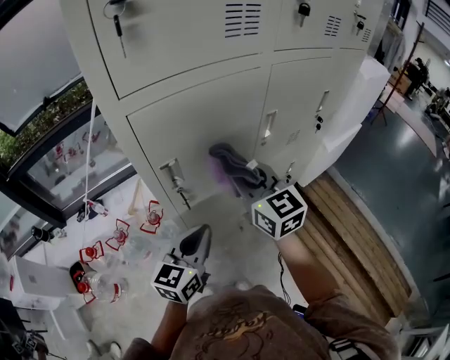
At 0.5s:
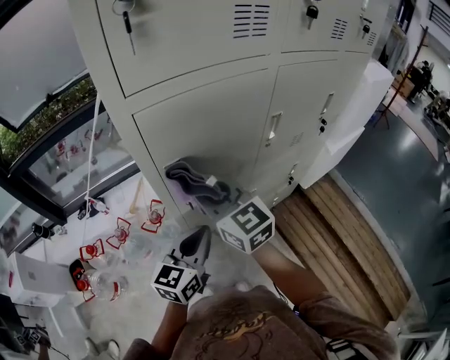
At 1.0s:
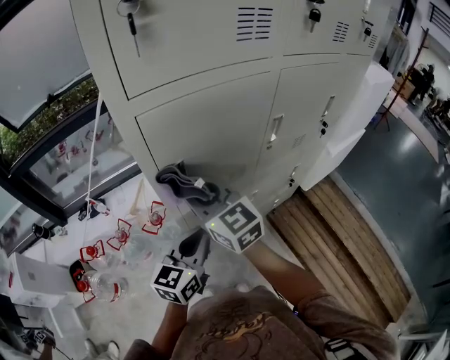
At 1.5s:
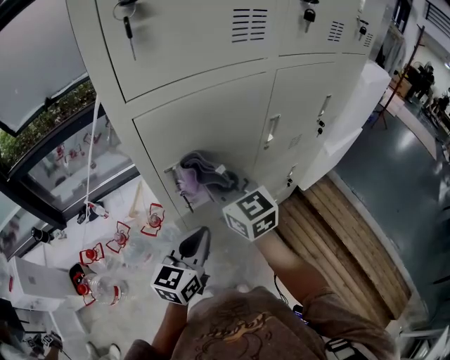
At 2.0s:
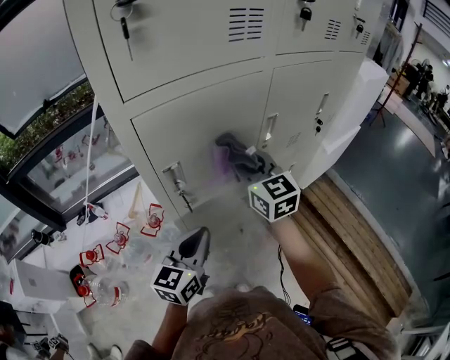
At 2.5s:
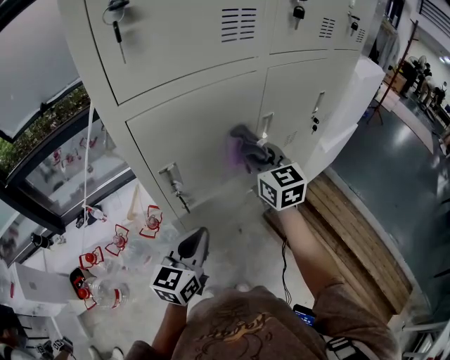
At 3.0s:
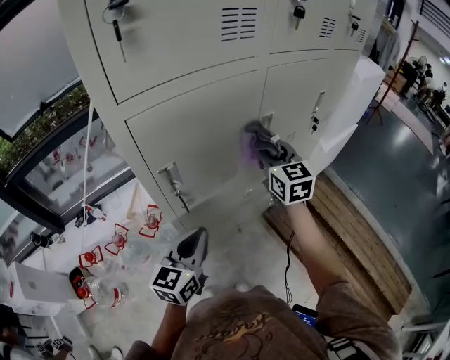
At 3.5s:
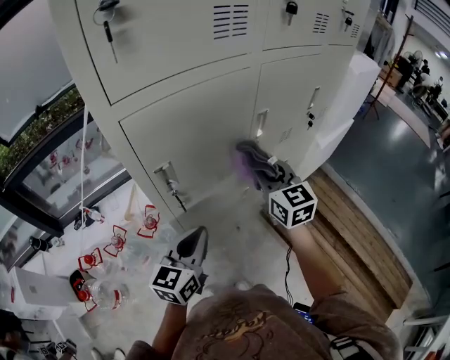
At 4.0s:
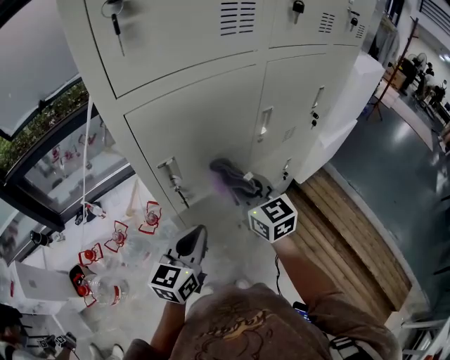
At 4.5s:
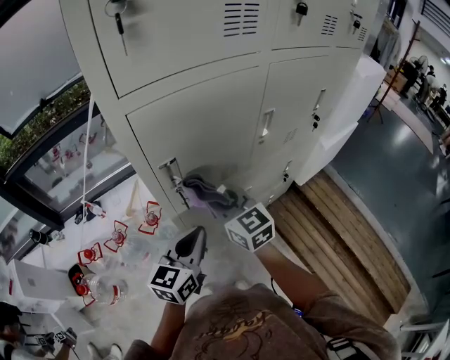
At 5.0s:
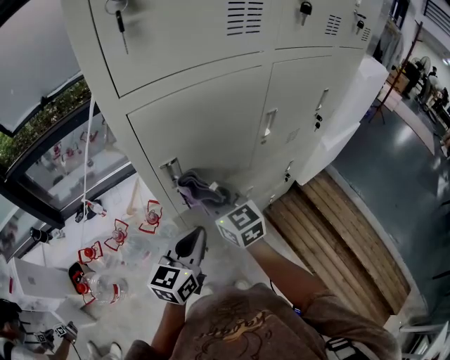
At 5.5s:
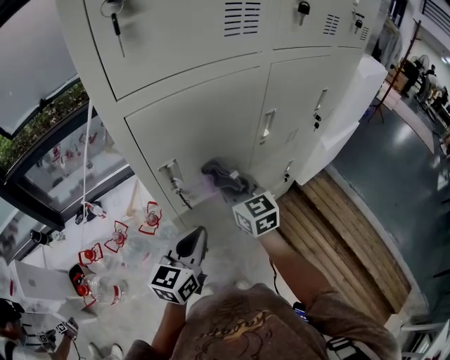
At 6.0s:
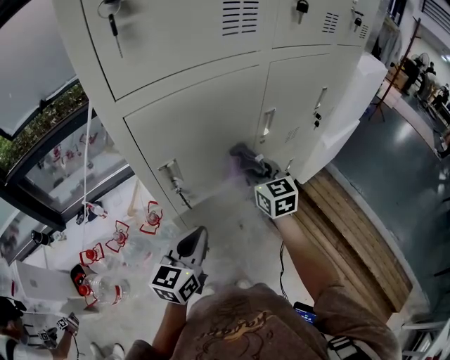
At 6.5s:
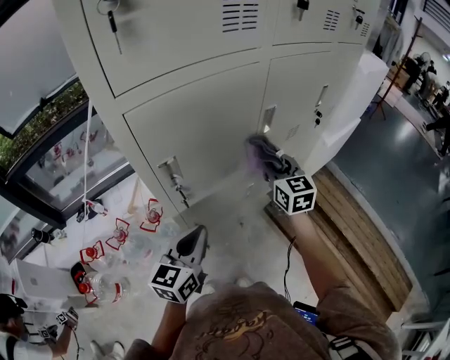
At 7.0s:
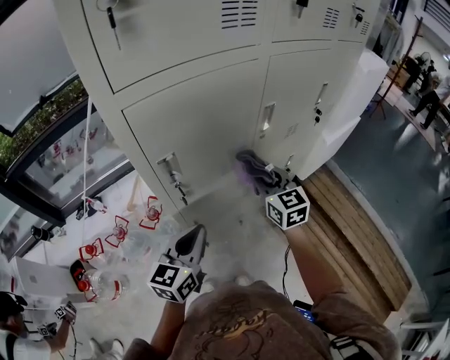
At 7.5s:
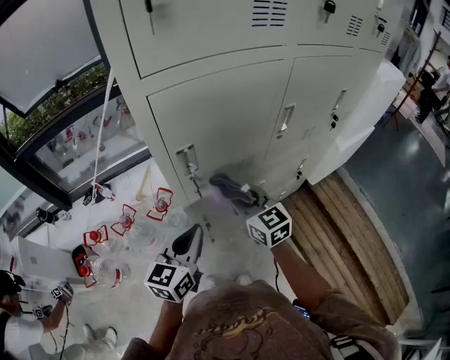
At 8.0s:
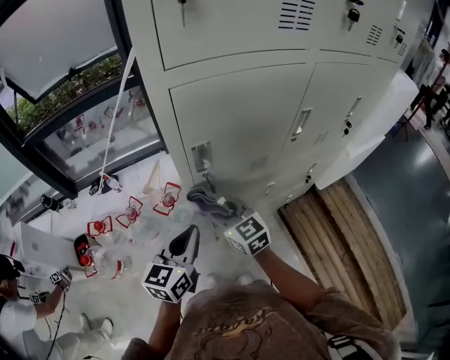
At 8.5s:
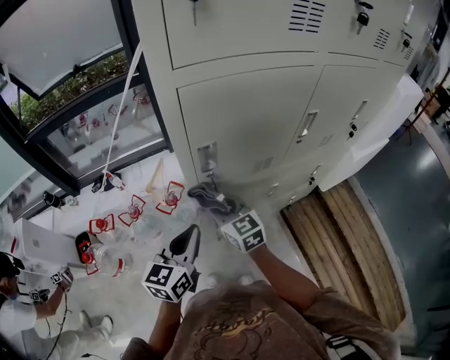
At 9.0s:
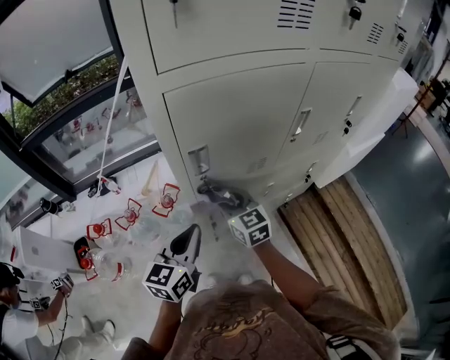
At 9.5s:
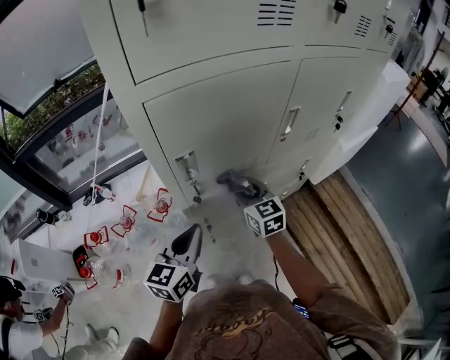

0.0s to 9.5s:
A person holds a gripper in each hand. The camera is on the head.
0.0s to 2.0s: The right gripper moves roughly 15 cm to the left and comes back.
2.0s to 4.0s: The right gripper goes roughly 10 cm downward and backward.
4.0s to 5.5s: The right gripper moves about 10 cm to the left and comes back.
5.5s to 7.5s: The right gripper heads backward, covering roughly 5 cm, and travels to the right and back again, about 15 cm each way.
7.5s to 9.5s: The right gripper is displaced forward by about 5 cm, and moves approximately 10 cm to the left and comes back.

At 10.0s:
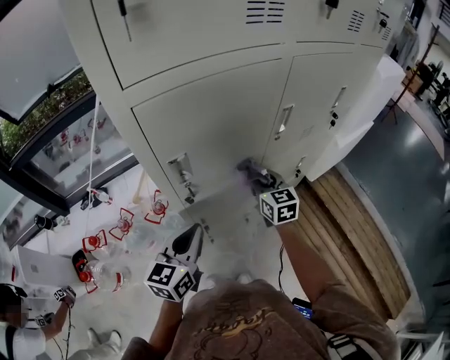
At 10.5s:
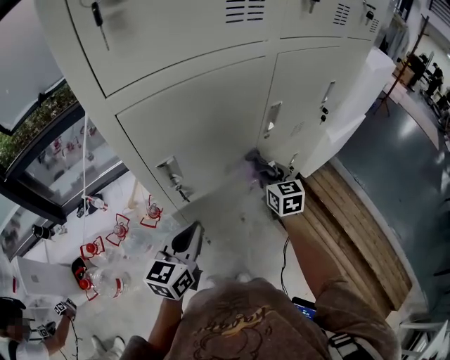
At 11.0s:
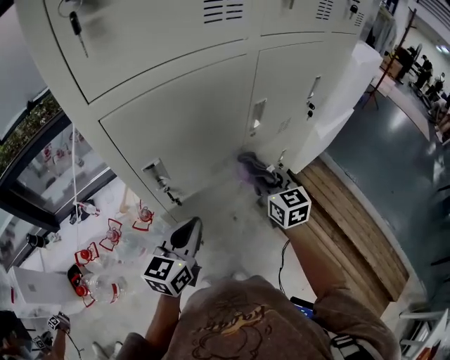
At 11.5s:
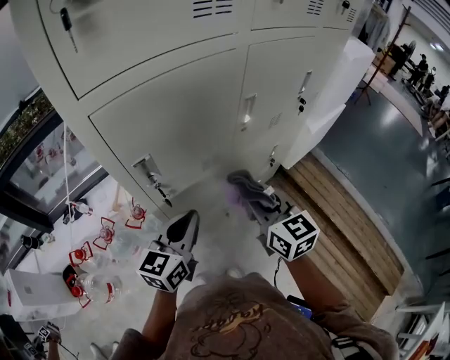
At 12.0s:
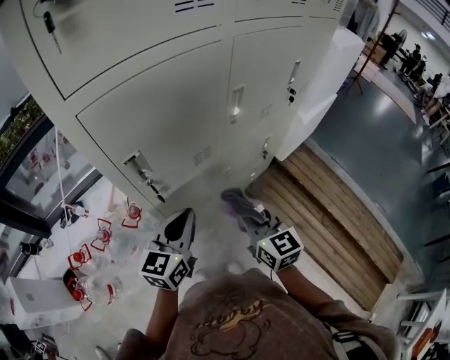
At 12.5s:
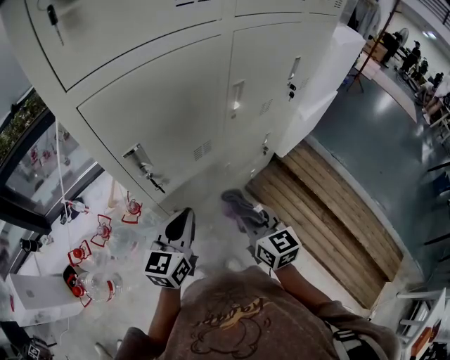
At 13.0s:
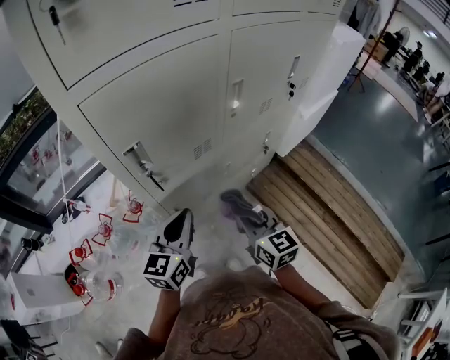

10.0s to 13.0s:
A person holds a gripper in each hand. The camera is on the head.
10.0s to 11.5s: The right gripper moves backward and upward, approximately 15 cm. The left gripper is displaced to the right by approximately 5 cm.
11.5s to 13.0s: The right gripper goes approximately 10 cm downward and backward.

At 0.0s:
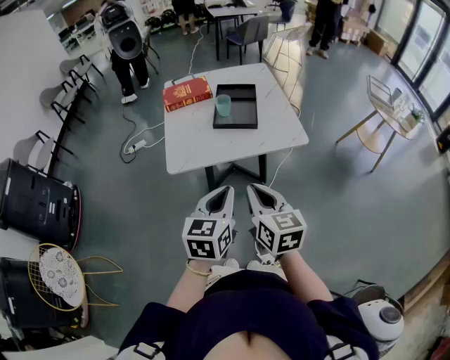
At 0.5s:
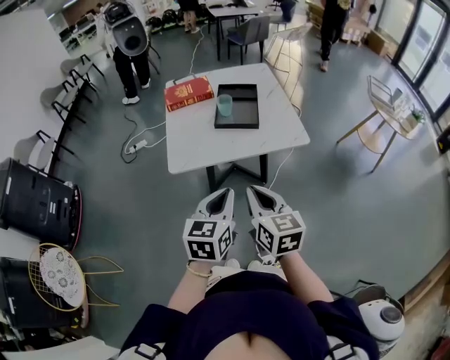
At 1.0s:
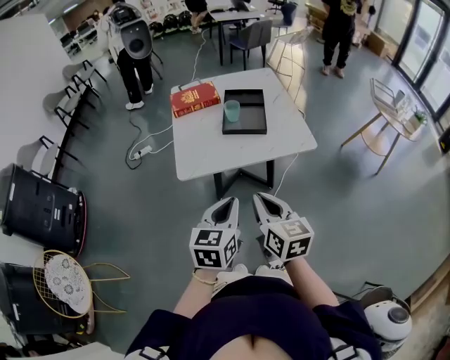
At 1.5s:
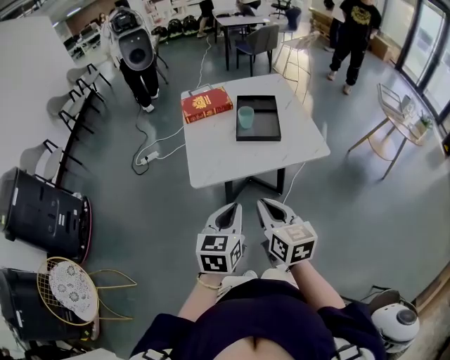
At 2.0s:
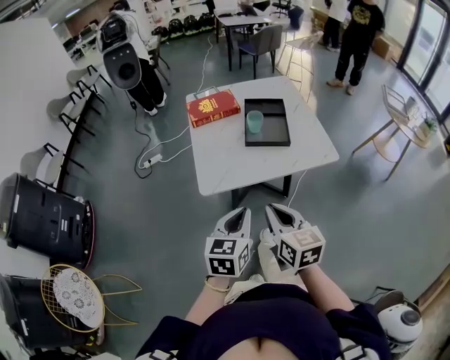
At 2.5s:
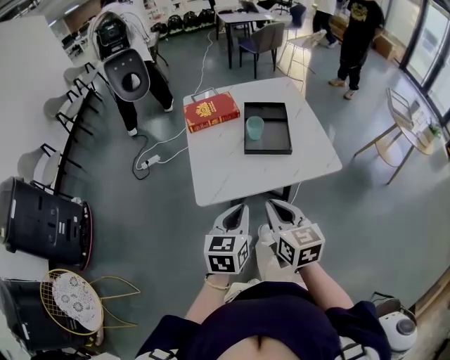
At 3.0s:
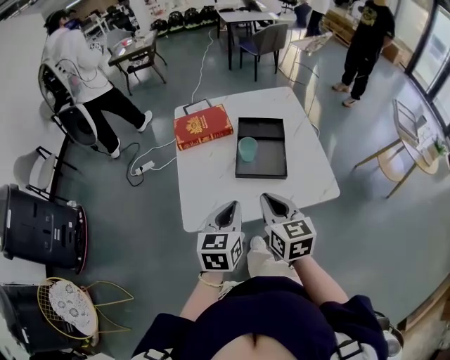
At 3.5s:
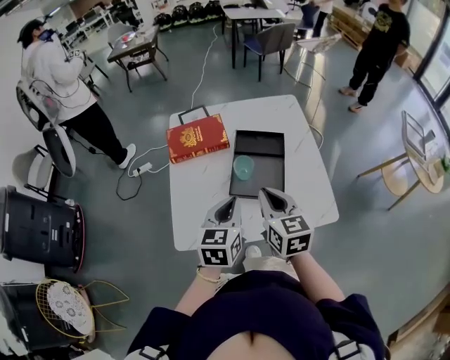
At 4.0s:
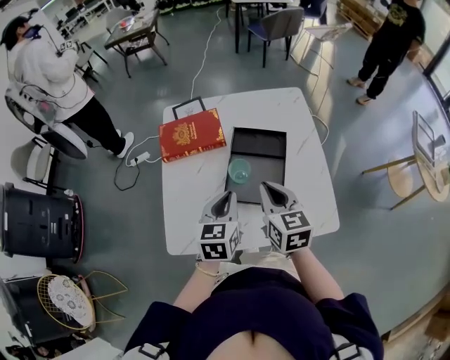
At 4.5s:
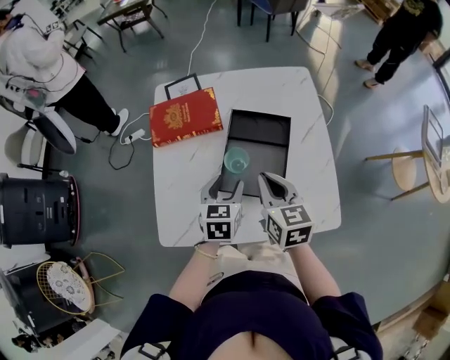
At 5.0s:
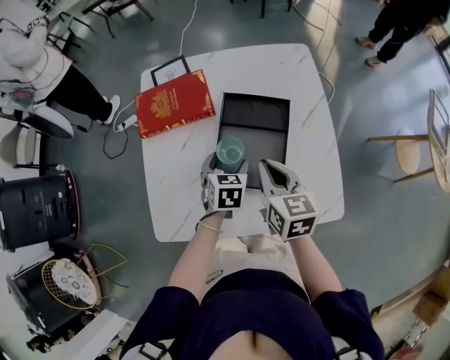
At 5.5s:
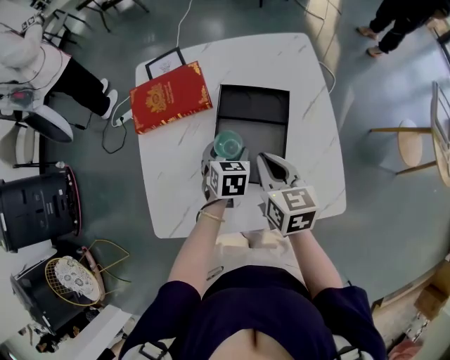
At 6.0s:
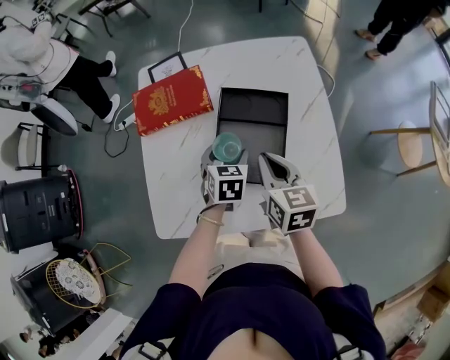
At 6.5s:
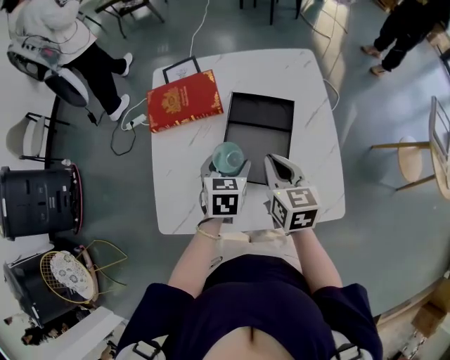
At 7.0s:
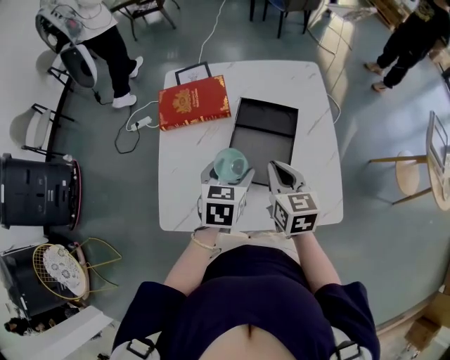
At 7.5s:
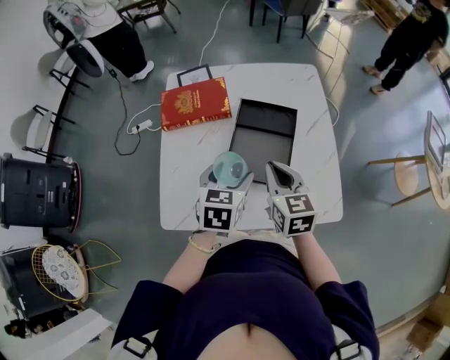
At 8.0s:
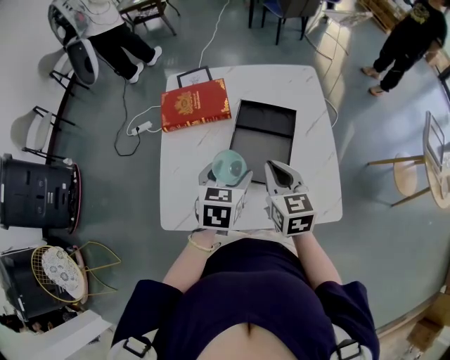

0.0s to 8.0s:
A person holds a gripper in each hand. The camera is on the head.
0.0s to 2.0s: Both grippers move to the left, roughly 10 cm.
2.0s to 4.0s: The two grippers go approximately 35 cm forward.
4.0s to 6.0s: The right gripper is displaced downward by about 5 cm, while the left gripper moves downward and forward, some 15 cm, changes its angle by roughly 20 degrees, and opens its fingers.
6.0s to 8.0s: The right gripper ends up about 5 cm from where it was. The left gripper moves upward and backward, roughly 15 cm.

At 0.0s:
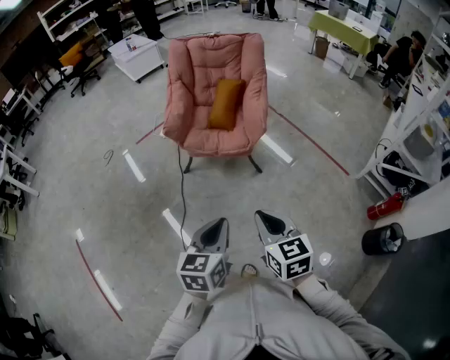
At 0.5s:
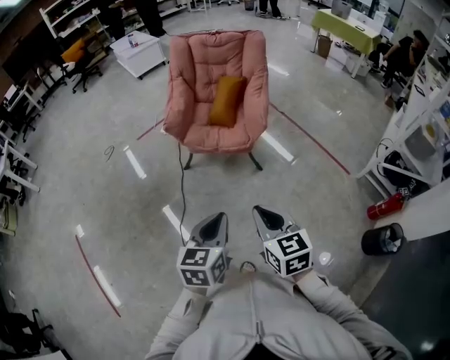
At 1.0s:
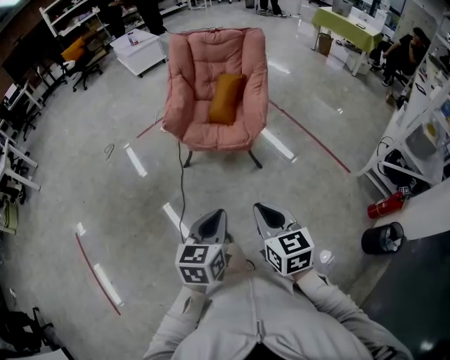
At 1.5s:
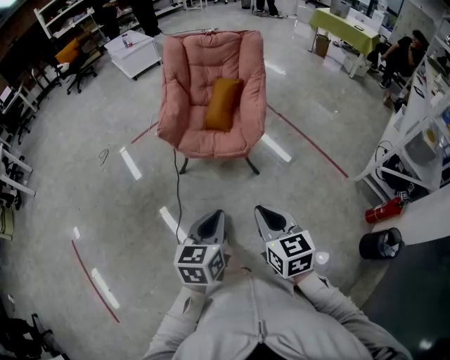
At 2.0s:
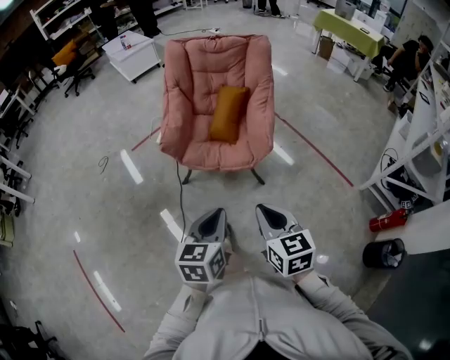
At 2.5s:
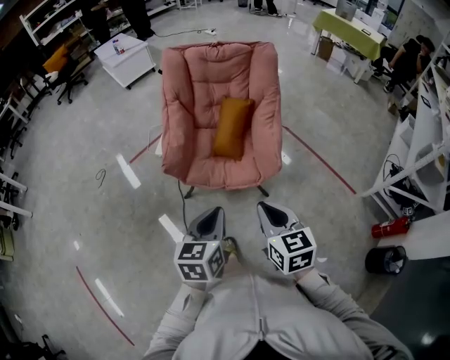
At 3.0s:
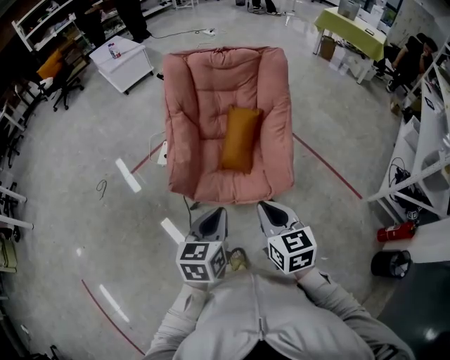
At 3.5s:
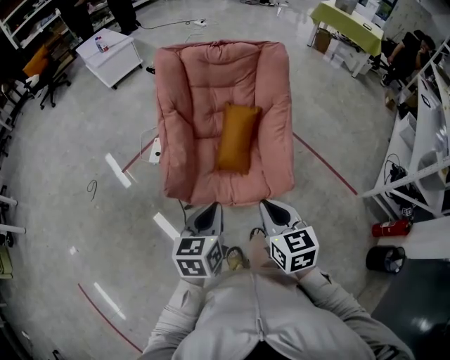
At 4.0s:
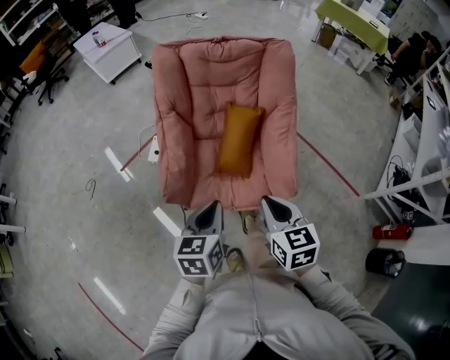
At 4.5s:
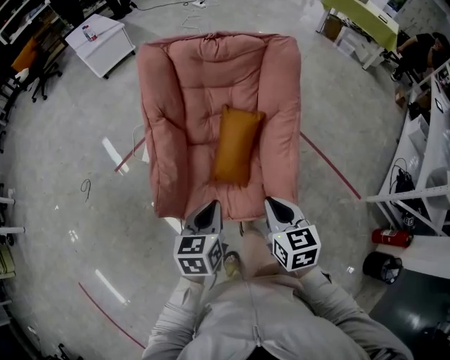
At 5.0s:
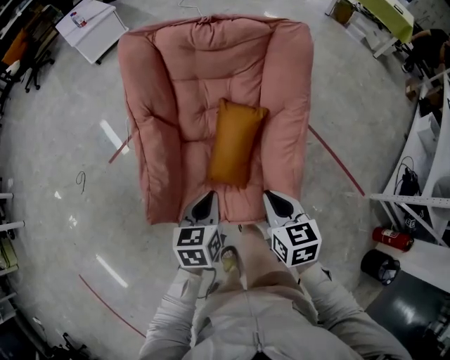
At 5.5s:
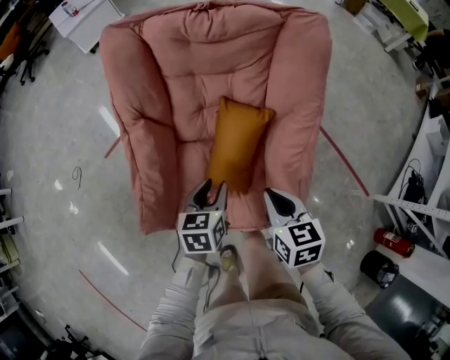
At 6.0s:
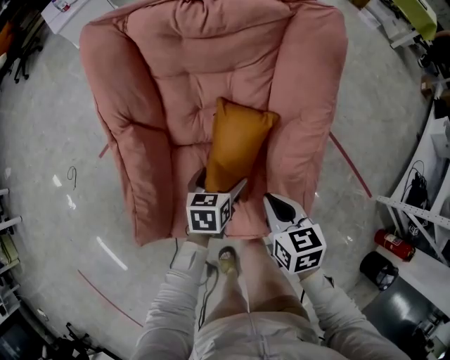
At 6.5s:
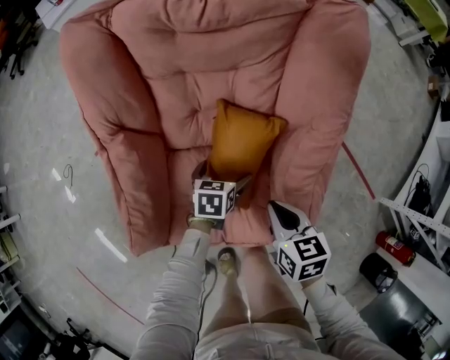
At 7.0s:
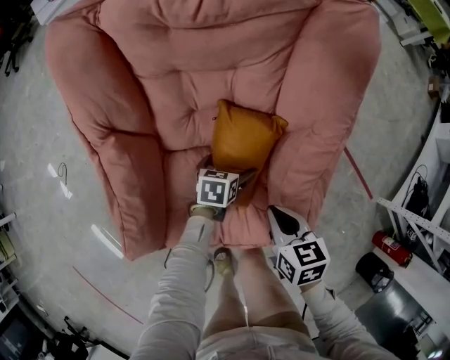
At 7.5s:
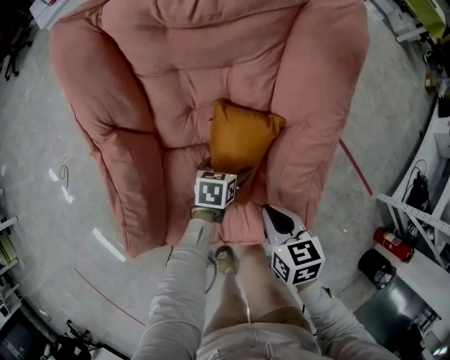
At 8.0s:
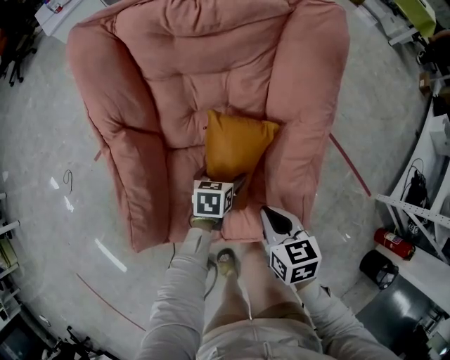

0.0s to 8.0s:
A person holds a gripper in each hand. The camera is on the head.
0.0s to 2.0s: Both grippers move forward, approximately 15 cm.
2.0s to 4.0s: The two grippers go roughly 35 cm forward.
4.0s to 6.0s: Both grippers move forward and downward, some 35 cm. The left gripper swivels roughly 20 degrees, and opens.
6.0s to 8.0s: The left gripper travels downward by some 5 cm.
